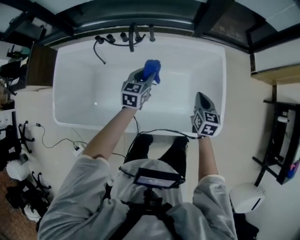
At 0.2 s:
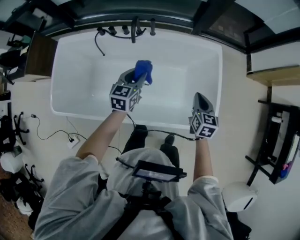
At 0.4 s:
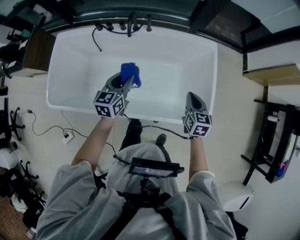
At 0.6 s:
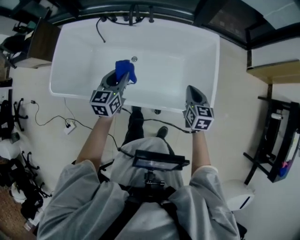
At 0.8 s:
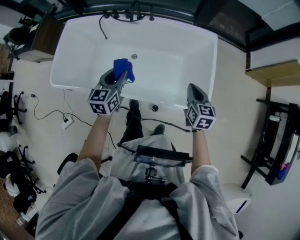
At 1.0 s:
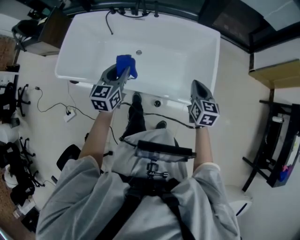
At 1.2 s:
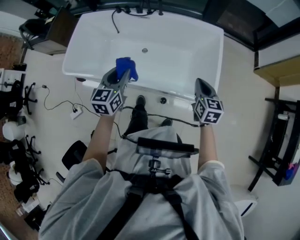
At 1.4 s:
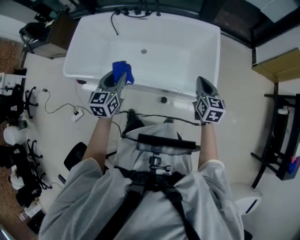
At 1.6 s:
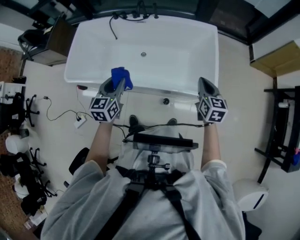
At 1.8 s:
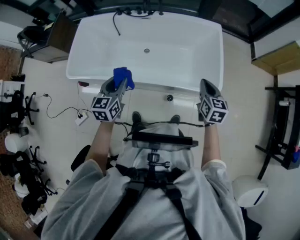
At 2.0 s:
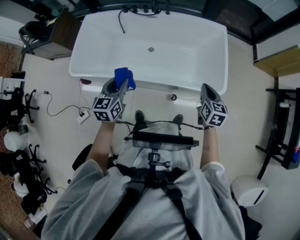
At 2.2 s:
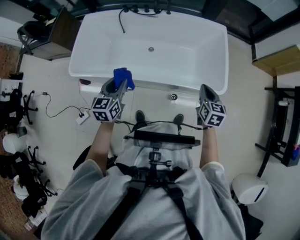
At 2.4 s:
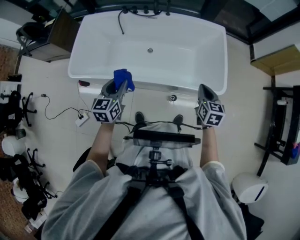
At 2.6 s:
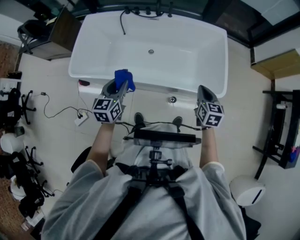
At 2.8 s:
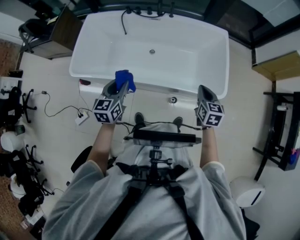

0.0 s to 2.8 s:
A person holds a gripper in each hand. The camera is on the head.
0.0 to 1.4 s: The left gripper heads backward, covering approximately 40 cm. Meanwhile the right gripper moves backward and upward, approximately 25 cm.
1.4 to 2.8 s: The grippers both shift to the left by some 15 cm.

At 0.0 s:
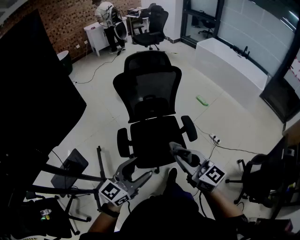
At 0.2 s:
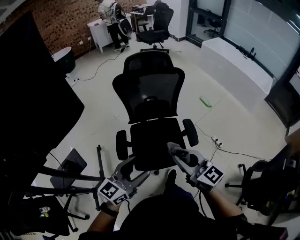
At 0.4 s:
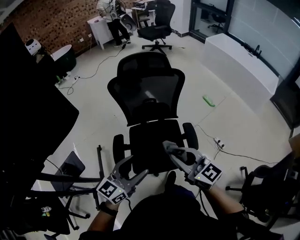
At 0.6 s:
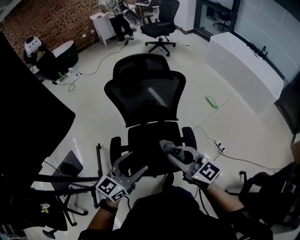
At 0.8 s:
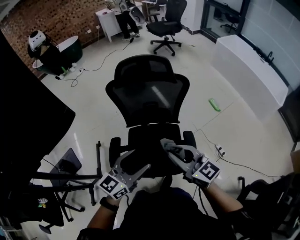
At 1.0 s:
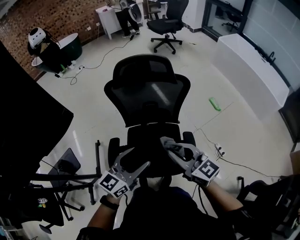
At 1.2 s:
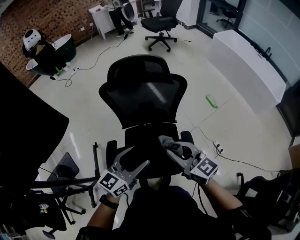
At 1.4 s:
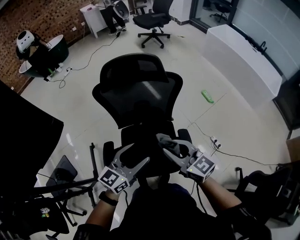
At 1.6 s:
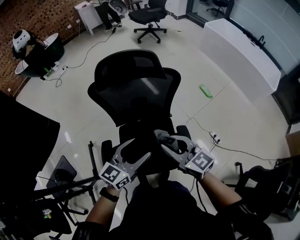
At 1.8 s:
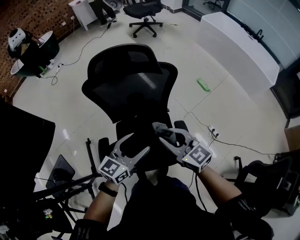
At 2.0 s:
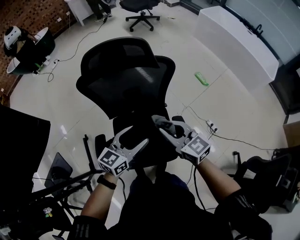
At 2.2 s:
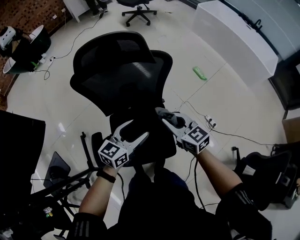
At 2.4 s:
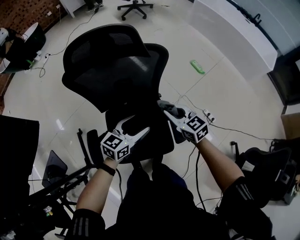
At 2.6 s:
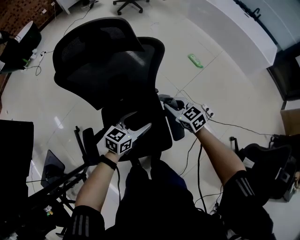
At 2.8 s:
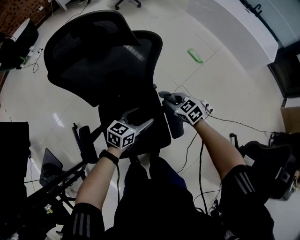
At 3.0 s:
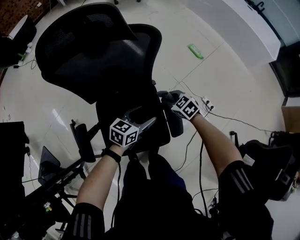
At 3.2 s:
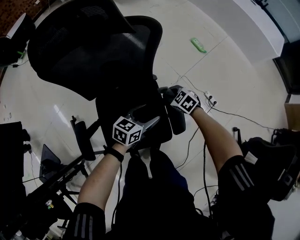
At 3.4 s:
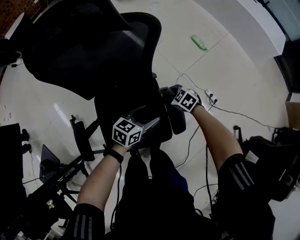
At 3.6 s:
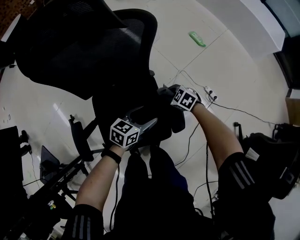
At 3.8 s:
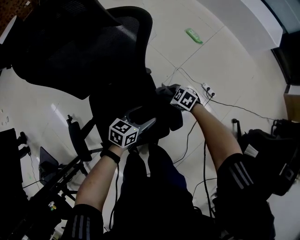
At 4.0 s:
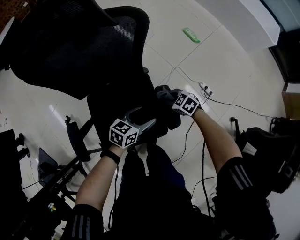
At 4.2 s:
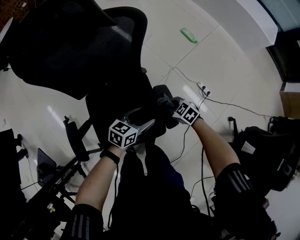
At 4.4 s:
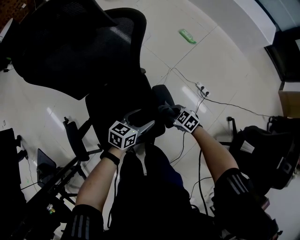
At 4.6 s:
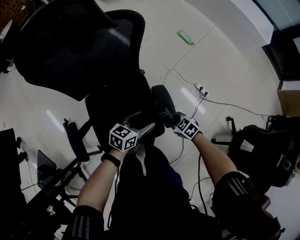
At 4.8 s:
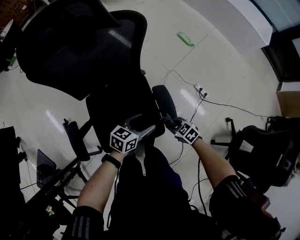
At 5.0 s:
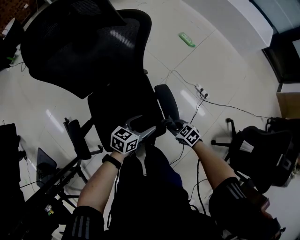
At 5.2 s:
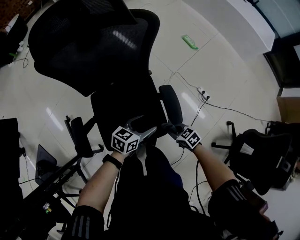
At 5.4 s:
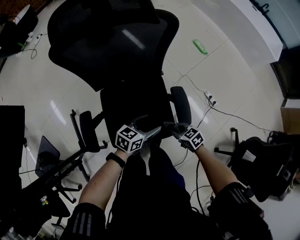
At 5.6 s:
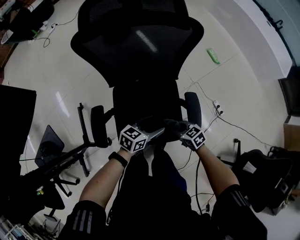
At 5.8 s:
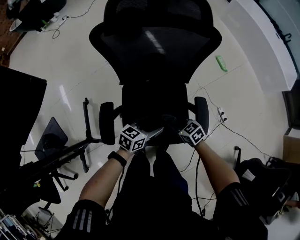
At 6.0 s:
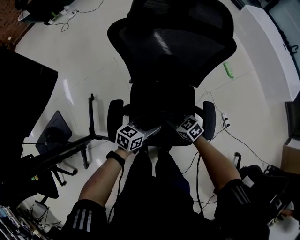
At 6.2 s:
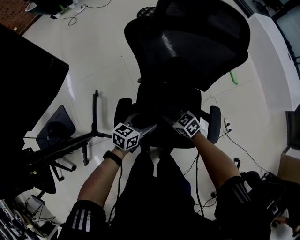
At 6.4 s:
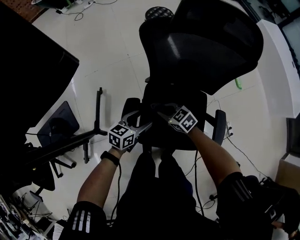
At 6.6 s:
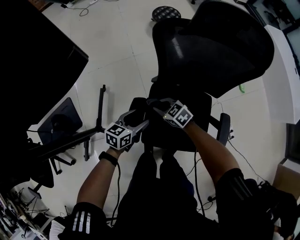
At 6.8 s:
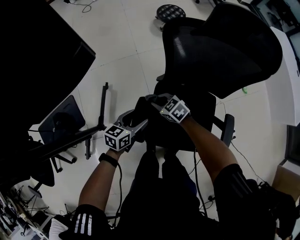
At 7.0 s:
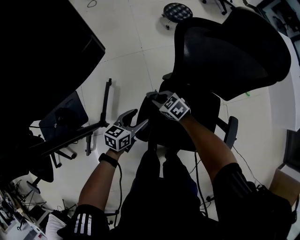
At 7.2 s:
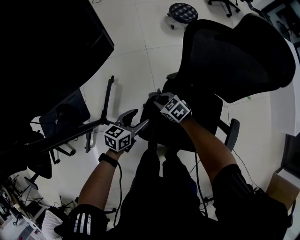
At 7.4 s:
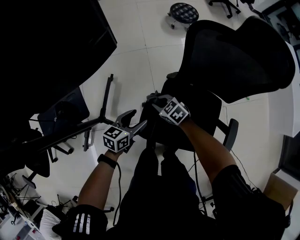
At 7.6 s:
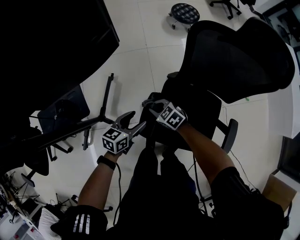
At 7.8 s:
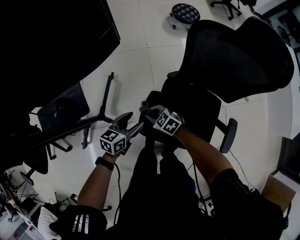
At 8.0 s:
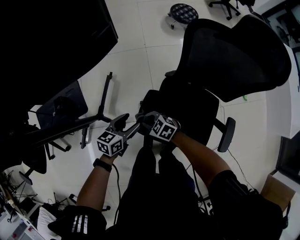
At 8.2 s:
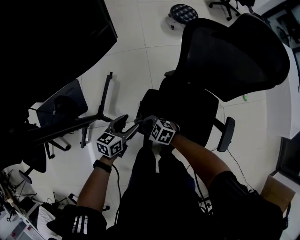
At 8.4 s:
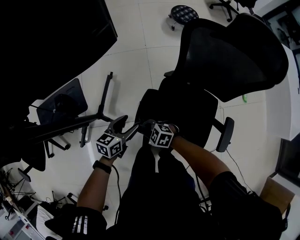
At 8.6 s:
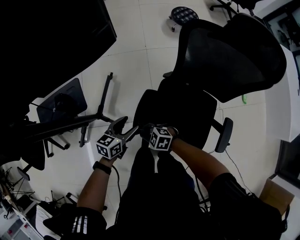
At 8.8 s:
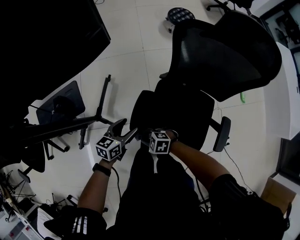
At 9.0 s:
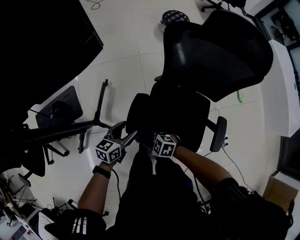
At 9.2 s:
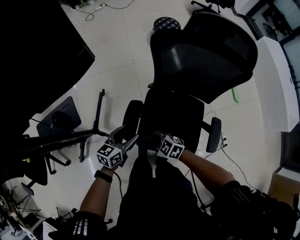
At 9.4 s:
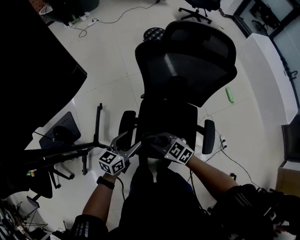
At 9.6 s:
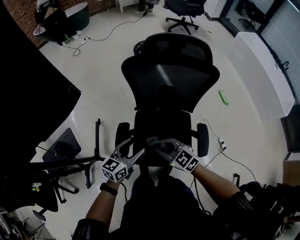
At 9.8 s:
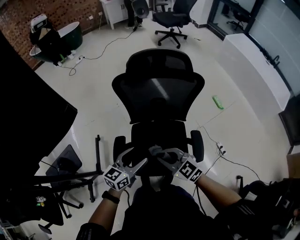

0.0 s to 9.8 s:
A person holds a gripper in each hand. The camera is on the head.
0.0 to 1.4 s: The right gripper shifts about 25 cm forward; the left gripper heads forward and to the right, covering some 30 cm.
1.4 to 2.8 s: The right gripper is displaced downward, forward and to the right by about 35 cm, and tilts its fingers roughly 30 degrees downward. Meanwhile the left gripper is displaced downward, to the right and forward by about 30 cm, and turns by approximately 30 degrees.
2.8 to 4.2 s: The right gripper goes roughly 15 cm downward; the left gripper goes approximately 10 cm downward.
4.2 to 5.6 s: The right gripper ends up approximately 15 cm from where it was. Meanwhile the left gripper shifts by about 10 cm.
5.6 to 7.0 s: The right gripper moves some 40 cm, and swivels roughly 30 degrees. The left gripper changes place by some 35 cm, and rotates about 30 degrees.
7.0 to 8.4 s: The right gripper changes place by some 20 cm, and changes its angle by roughly 30 degrees, while the left gripper moves approximately 10 cm.
8.4 to 9.8 s: The right gripper is displaced upward by some 25 cm, and turns by some 50 degrees. Meanwhile the left gripper changes place by approximately 30 cm, and swivels about 30 degrees.

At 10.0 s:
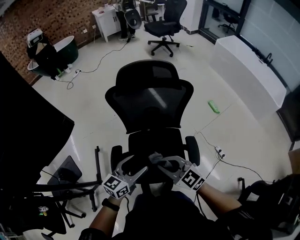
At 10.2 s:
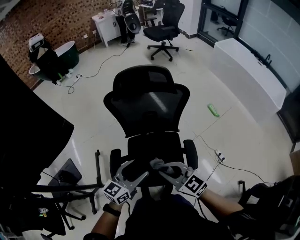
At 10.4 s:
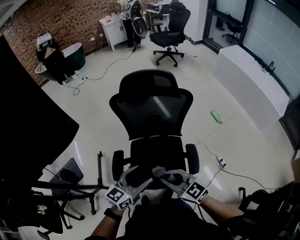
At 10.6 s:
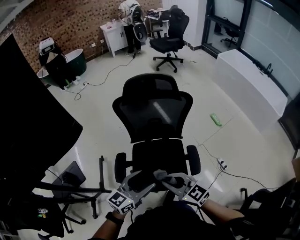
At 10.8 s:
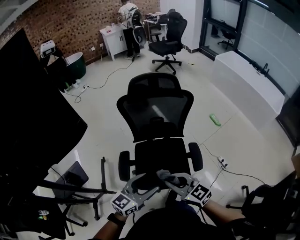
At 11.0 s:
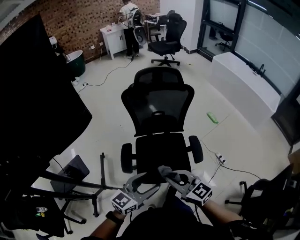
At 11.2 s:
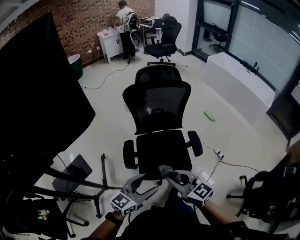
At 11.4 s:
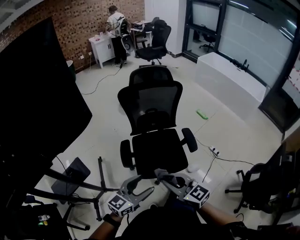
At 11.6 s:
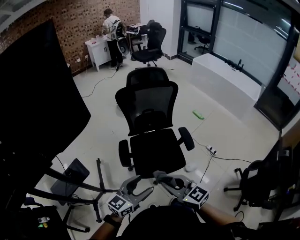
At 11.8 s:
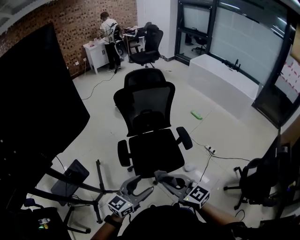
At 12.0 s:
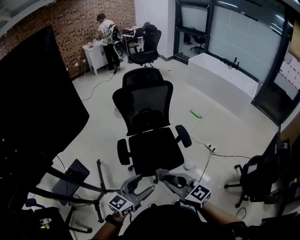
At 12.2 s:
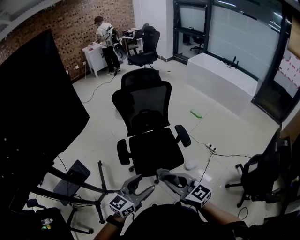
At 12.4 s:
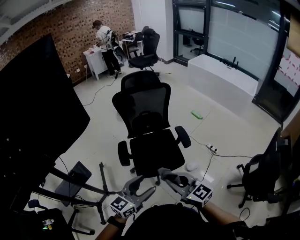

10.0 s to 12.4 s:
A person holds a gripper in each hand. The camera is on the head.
10.0 to 11.2 s: The two grippers go roughly 25 cm backward.
11.2 to 12.4 s: Both grippers move backward, roughly 15 cm.

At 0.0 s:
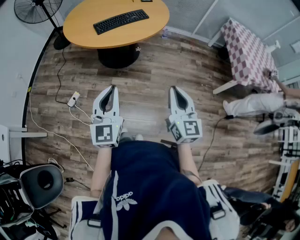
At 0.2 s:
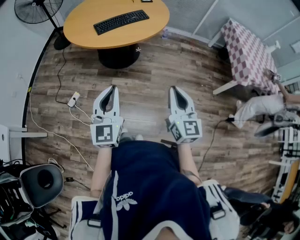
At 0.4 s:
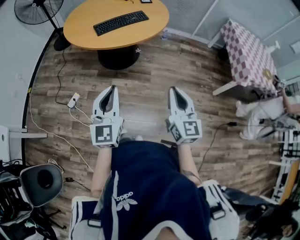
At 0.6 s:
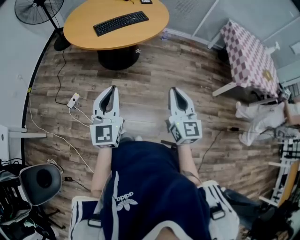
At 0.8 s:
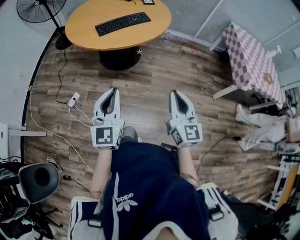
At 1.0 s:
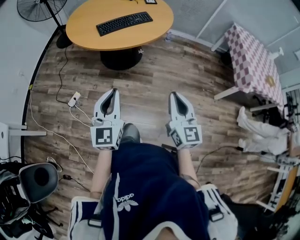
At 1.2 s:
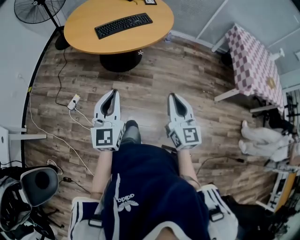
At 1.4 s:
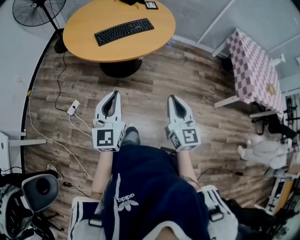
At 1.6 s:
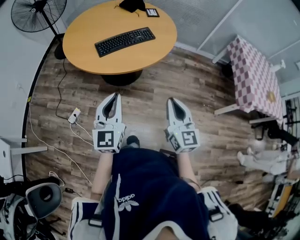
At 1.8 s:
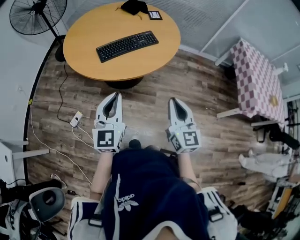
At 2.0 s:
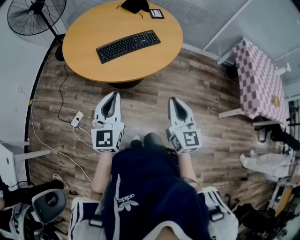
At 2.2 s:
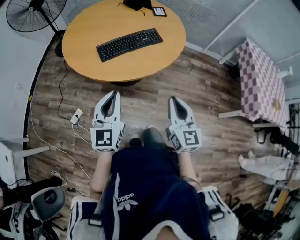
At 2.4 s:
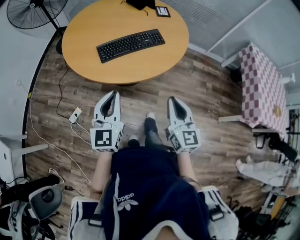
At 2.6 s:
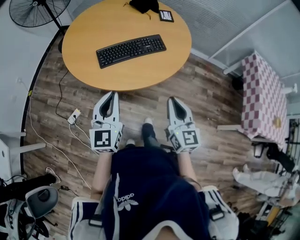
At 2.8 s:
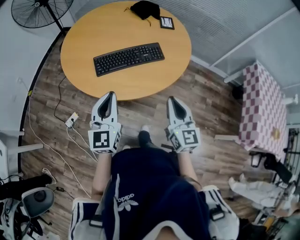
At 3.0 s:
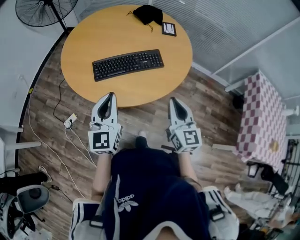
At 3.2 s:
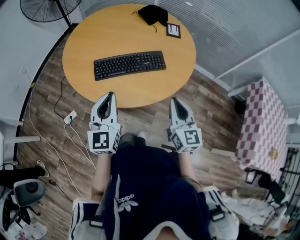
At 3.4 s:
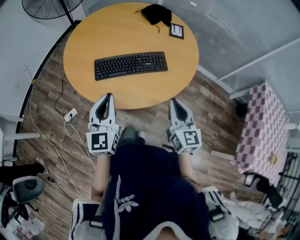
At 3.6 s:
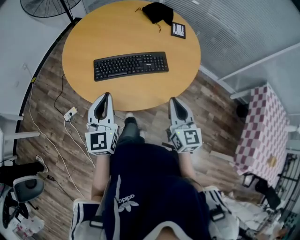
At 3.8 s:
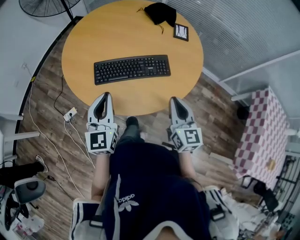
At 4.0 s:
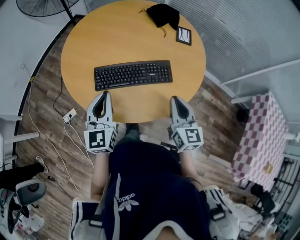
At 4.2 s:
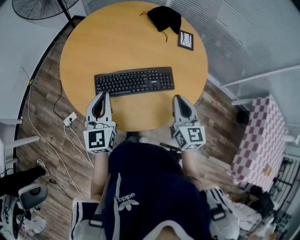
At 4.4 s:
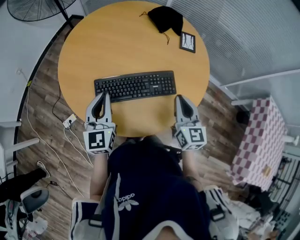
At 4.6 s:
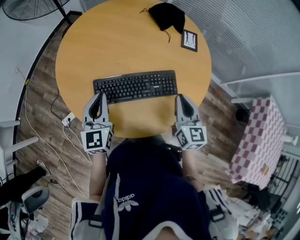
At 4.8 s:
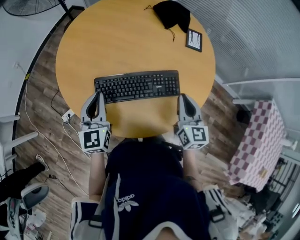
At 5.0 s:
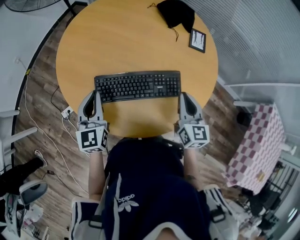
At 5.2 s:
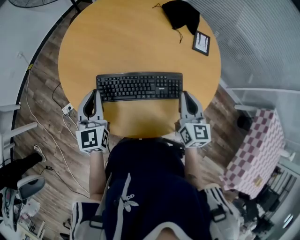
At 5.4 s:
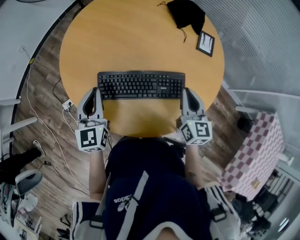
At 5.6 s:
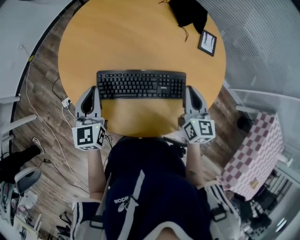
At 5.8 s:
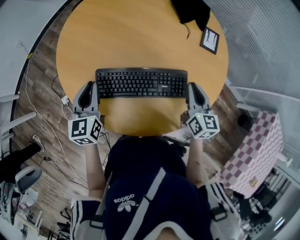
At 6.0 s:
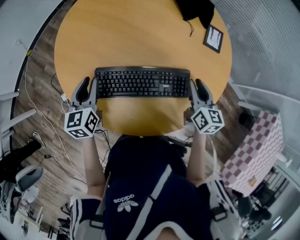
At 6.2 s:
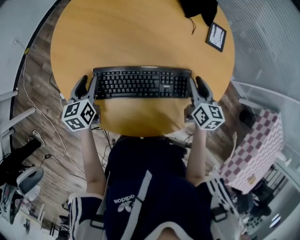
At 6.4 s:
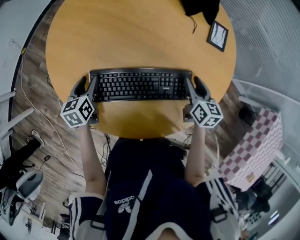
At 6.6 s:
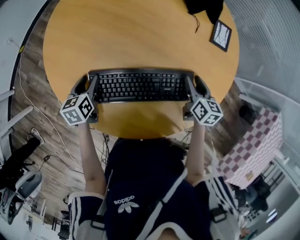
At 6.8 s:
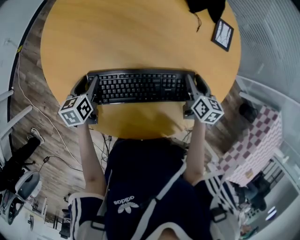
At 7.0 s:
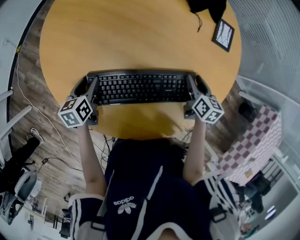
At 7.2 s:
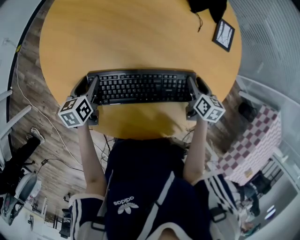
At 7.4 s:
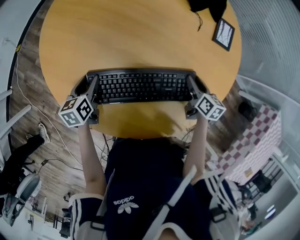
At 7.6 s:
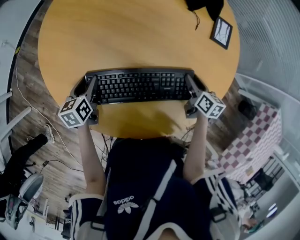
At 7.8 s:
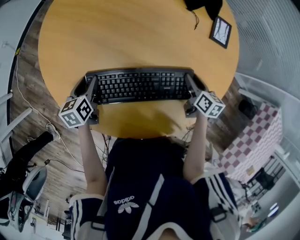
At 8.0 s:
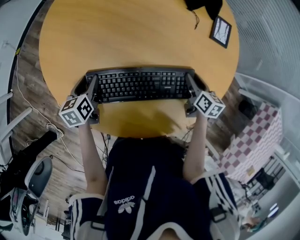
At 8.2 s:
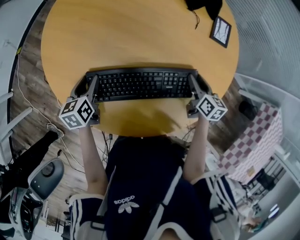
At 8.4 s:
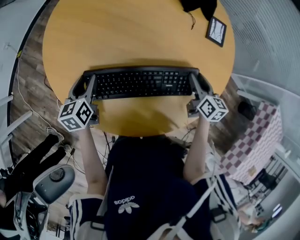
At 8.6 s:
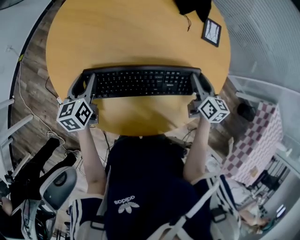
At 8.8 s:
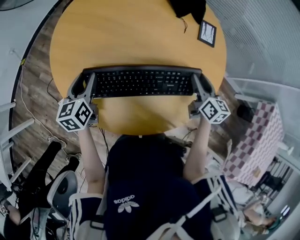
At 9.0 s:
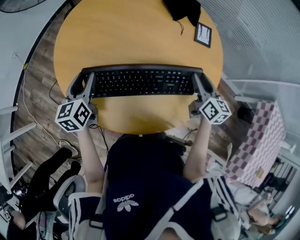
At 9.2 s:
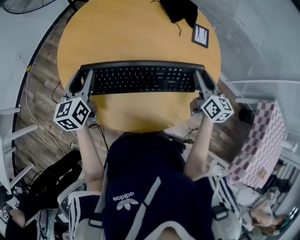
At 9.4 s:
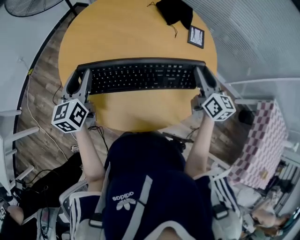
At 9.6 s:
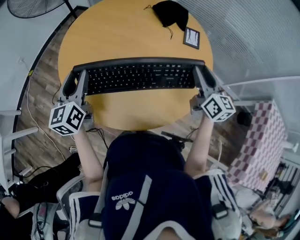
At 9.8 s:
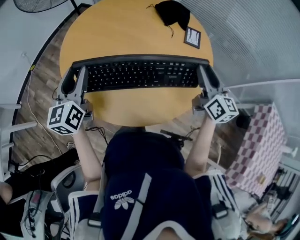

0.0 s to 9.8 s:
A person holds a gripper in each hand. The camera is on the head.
0.0 to 1.4 s: Both grippers move forward, approximately 10 cm.
1.4 to 2.8 s: Both grippers move forward, roughly 30 cm.
2.8 to 4.2 s: Both grippers travel together forward, about 20 cm.
4.2 to 5.6 s: The right gripper is displaced forward by roughly 15 cm. Meanwhile the left gripper goes approximately 10 cm forward, downward and to the left.
5.6 to 7.0 s: The right gripper shifts roughly 20 cm downward and forward, turns by approximately 30 degrees, and opens up; the left gripper is displaced downward by roughly 20 cm, swivels some 40 degrees, and opens up.
7.0 to 8.4 s: The left gripper shifts by approximately 5 cm.
8.4 to 9.8 s: The grippers both shift upward and backward by roughly 30 cm. The right gripper tips its fingers upward by some 30 degrees. The left gripper tips its fingers upward by roughly 30 degrees.
